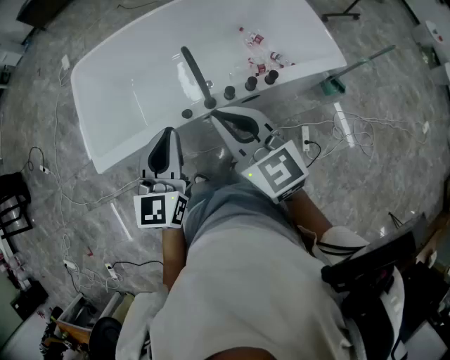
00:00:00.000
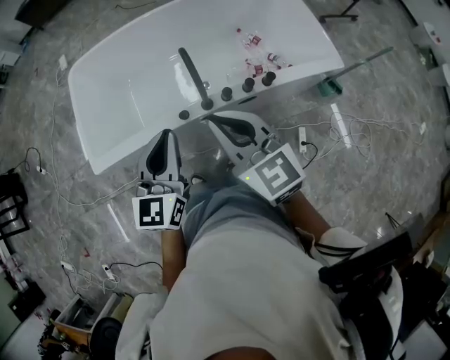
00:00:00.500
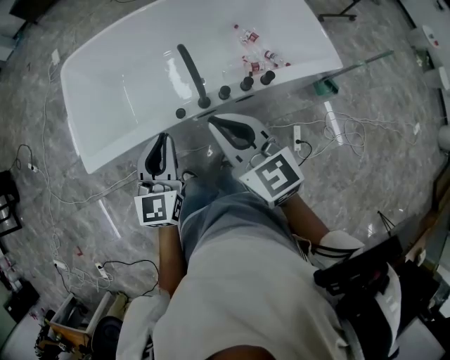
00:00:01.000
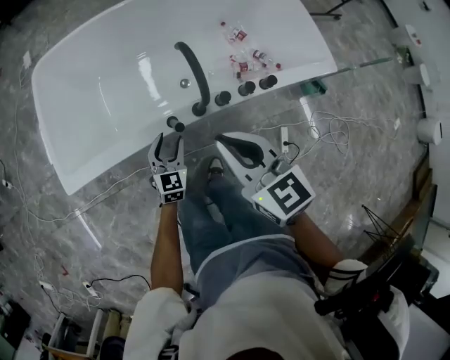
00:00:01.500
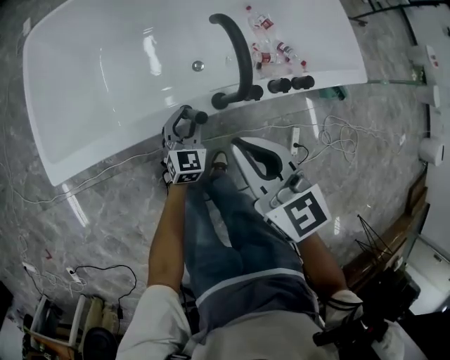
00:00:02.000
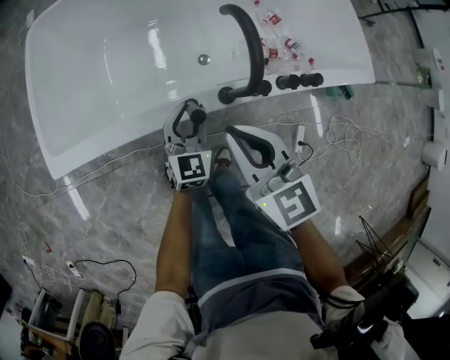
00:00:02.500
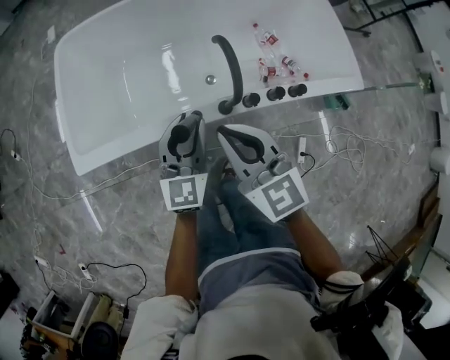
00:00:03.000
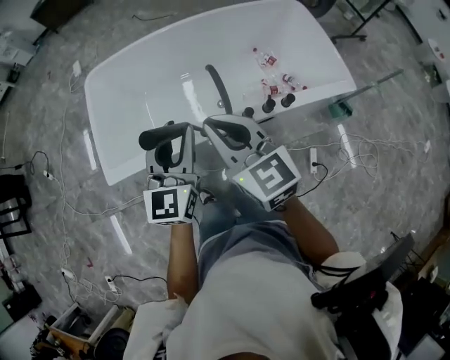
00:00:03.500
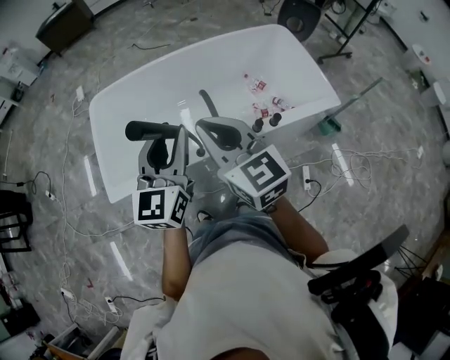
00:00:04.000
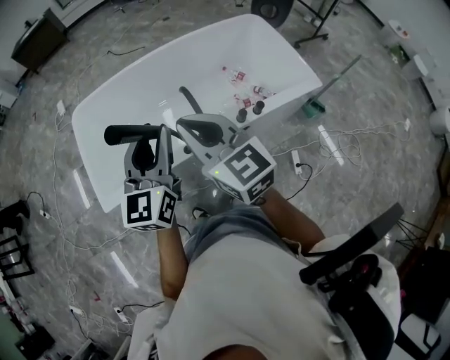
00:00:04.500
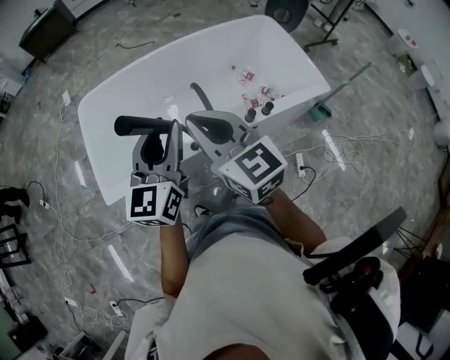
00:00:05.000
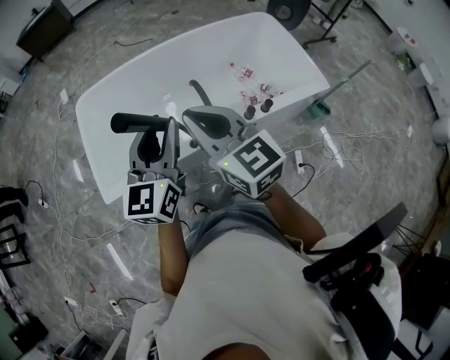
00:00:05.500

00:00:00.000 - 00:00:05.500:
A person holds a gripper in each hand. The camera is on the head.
00:00:00.000 - 00:00:02.000: The left gripper shifts about 80 cm downward and forward, swivels roughly 20 degrees, and opens up; the right gripper heads downward, forward and to the left, covering about 60 cm.
00:00:02.000 - 00:00:03.500: The right gripper is displaced upward and backward by about 50 cm. The left gripper is displaced upward by roughly 70 cm, and swivels about 20 degrees.
00:00:03.500 - 00:00:05.500: The grippers both shift upward and backward by roughly 15 cm.

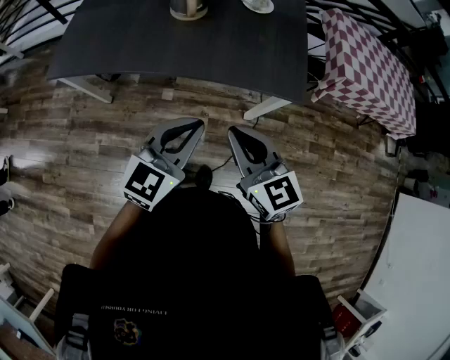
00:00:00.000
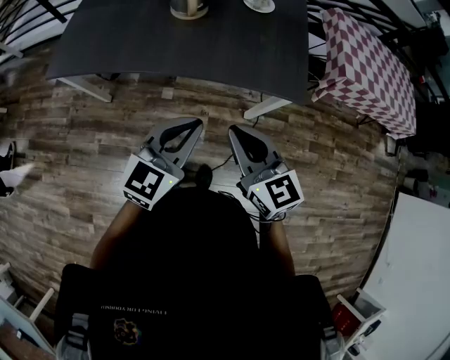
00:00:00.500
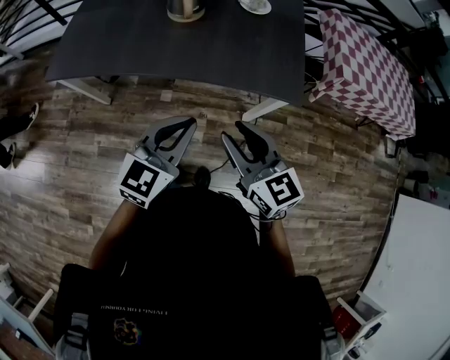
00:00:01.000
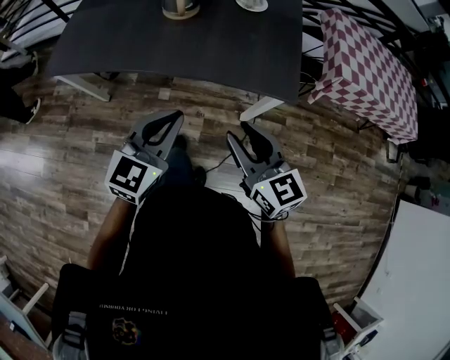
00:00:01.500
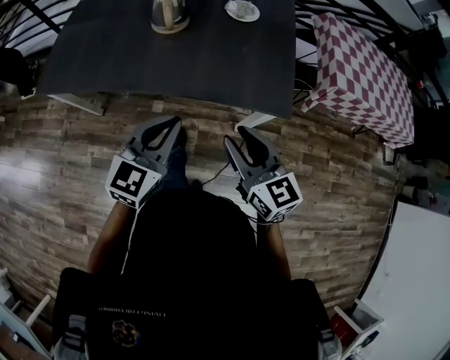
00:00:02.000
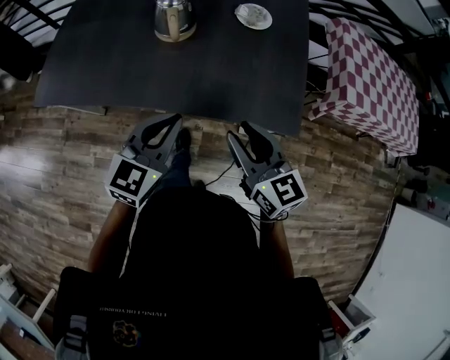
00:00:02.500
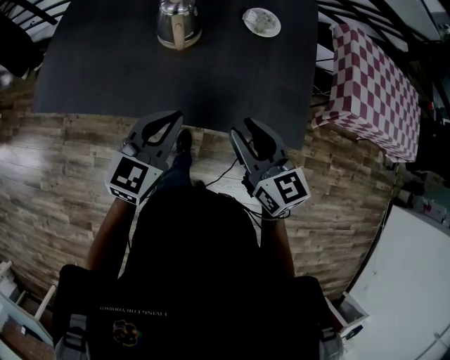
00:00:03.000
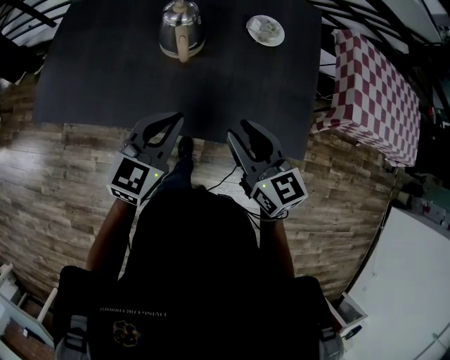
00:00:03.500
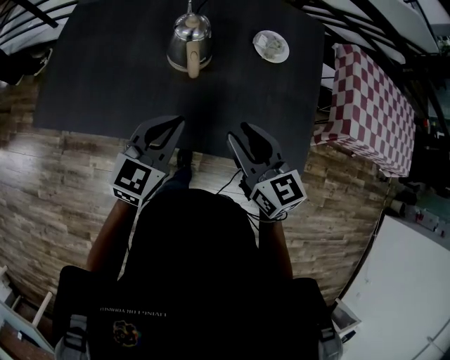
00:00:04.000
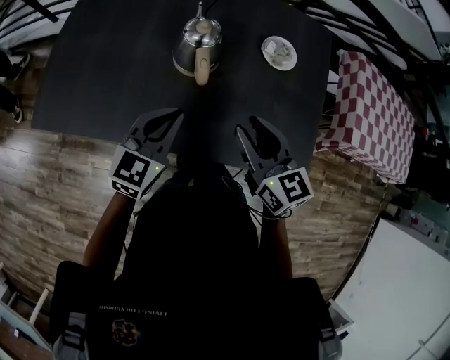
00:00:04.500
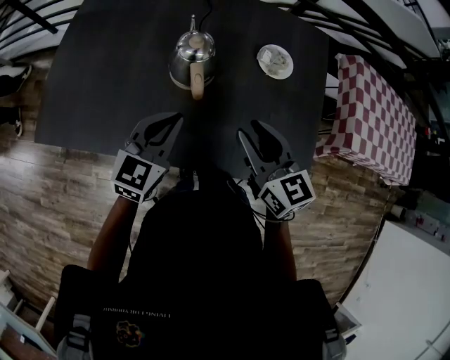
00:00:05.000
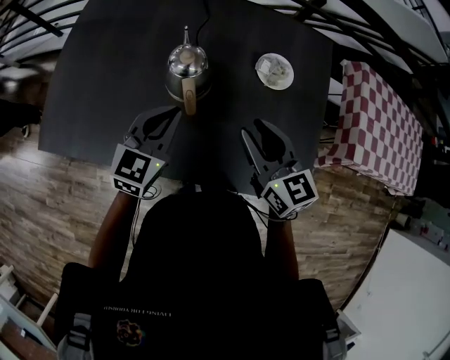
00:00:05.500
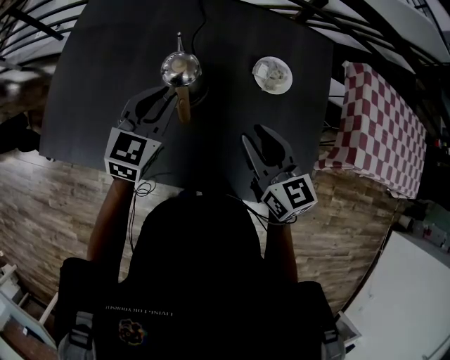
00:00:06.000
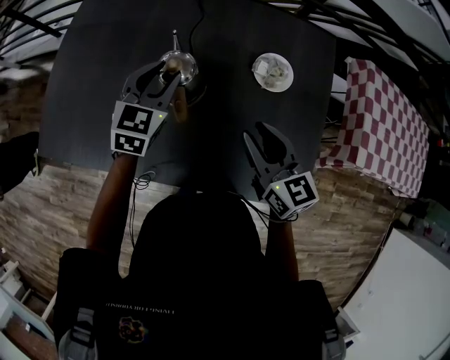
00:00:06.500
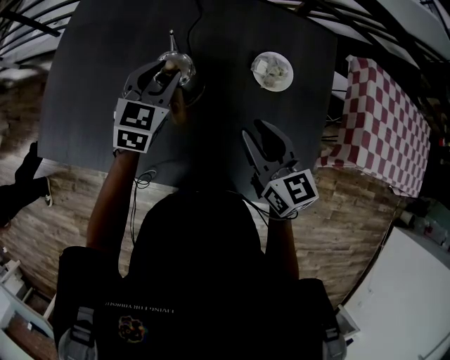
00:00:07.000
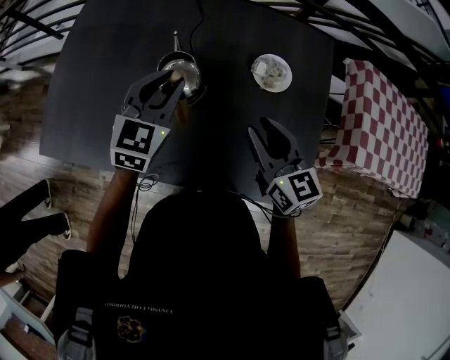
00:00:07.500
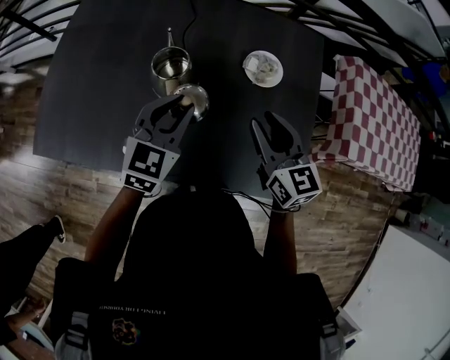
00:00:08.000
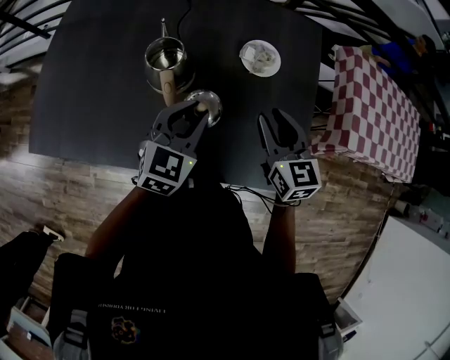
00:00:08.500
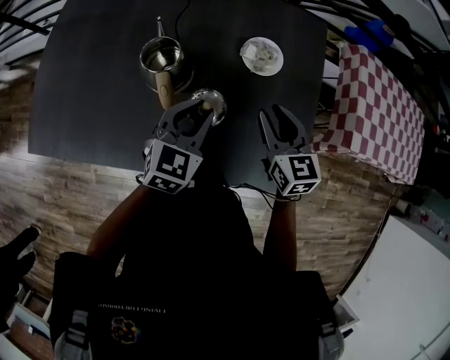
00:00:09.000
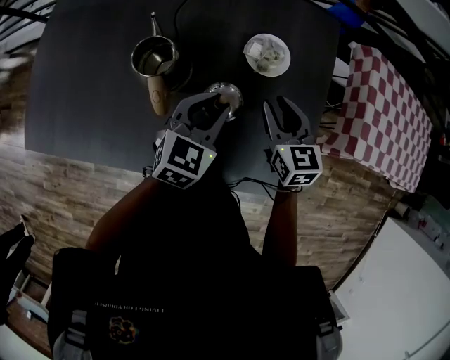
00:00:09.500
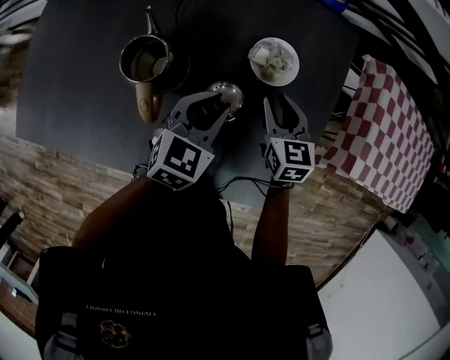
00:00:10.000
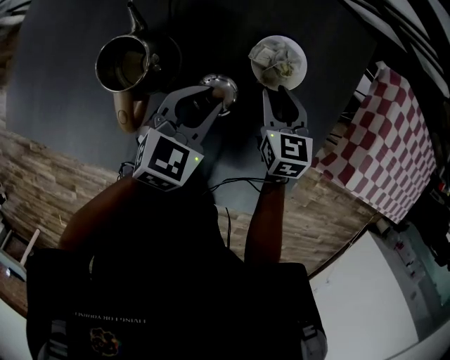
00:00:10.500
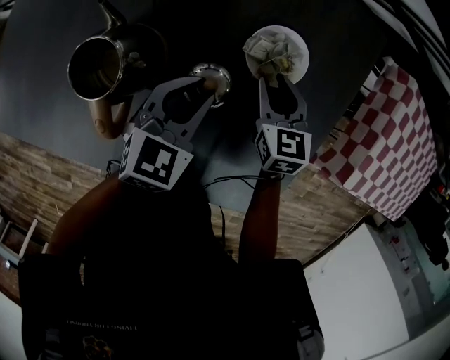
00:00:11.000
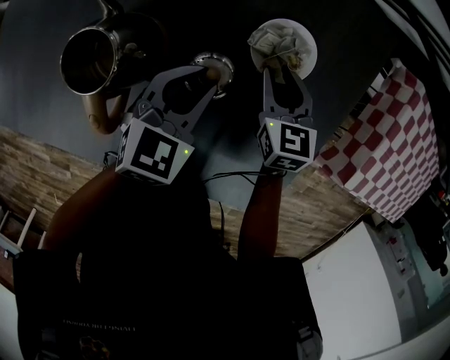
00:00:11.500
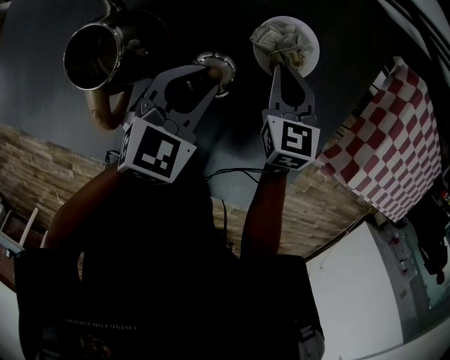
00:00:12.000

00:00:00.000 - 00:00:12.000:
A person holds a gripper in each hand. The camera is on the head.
00:00:00.000 - 00:00:02.000: The right gripper heads to the right and forward, covering roughly 10 cm, and opens up. The left gripper heads forward, covering roughly 5 cm.
00:00:02.000 - 00:00:04.000: The two grippers go some 25 cm forward and to the left.
00:00:04.000 - 00:00:06.000: Both grippers travel together forward, about 15 cm.
00:00:06.000 - 00:00:08.000: The left gripper goes approximately 5 cm to the right.
00:00:08.000 - 00:00:10.000: The left gripper shifts about 15 cm downward, to the right and forward. The right gripper is displaced downward and forward by roughly 20 cm.
00:00:10.000 - 00:00:12.000: The left gripper heads downward, covering approximately 5 cm; the right gripper is displaced forward and downward by approximately 10 cm, and closes its fingers.

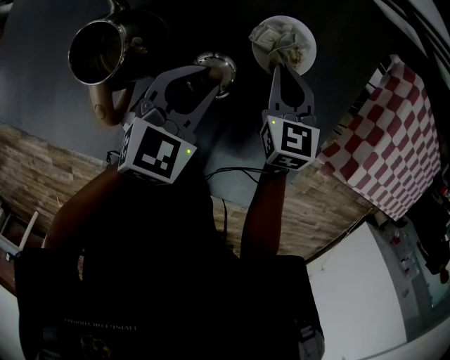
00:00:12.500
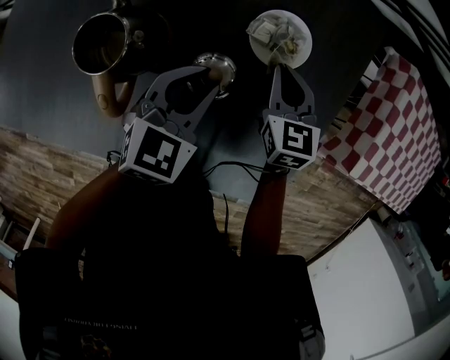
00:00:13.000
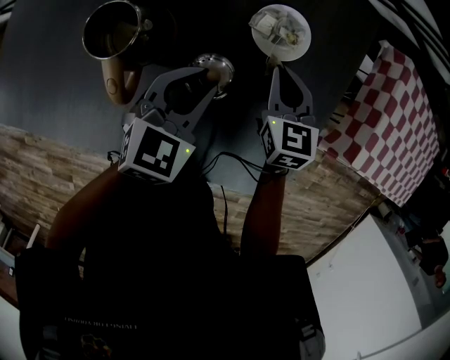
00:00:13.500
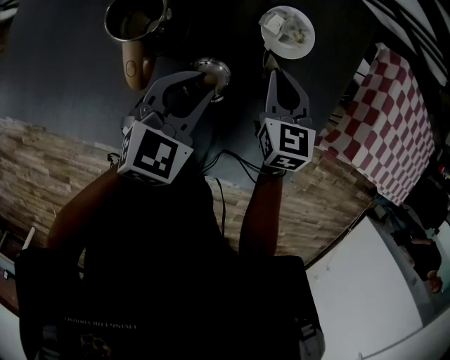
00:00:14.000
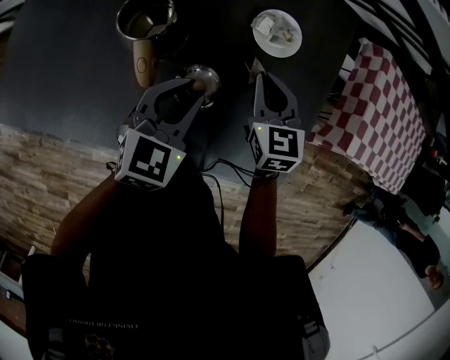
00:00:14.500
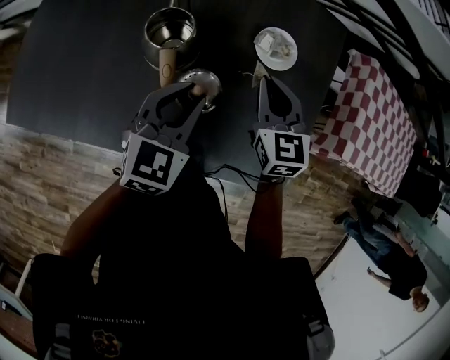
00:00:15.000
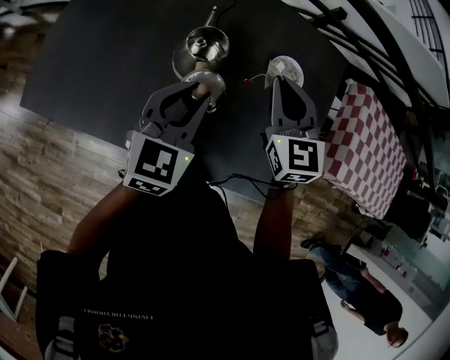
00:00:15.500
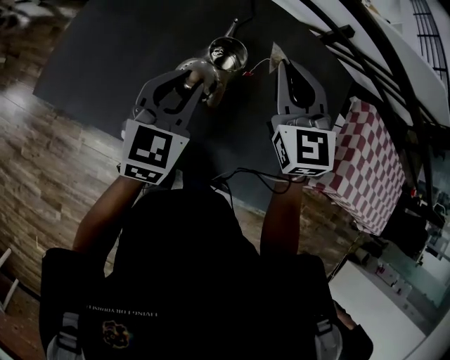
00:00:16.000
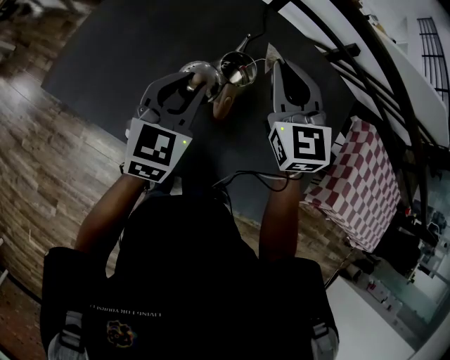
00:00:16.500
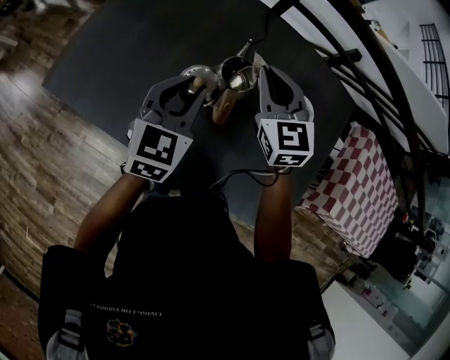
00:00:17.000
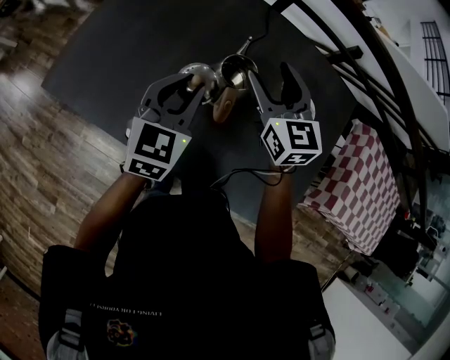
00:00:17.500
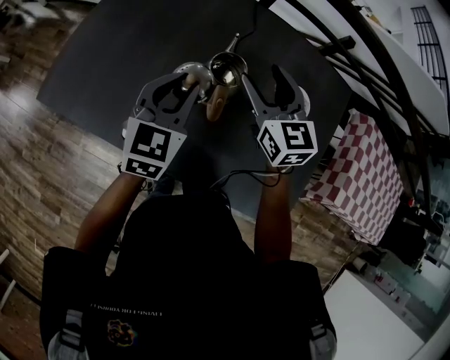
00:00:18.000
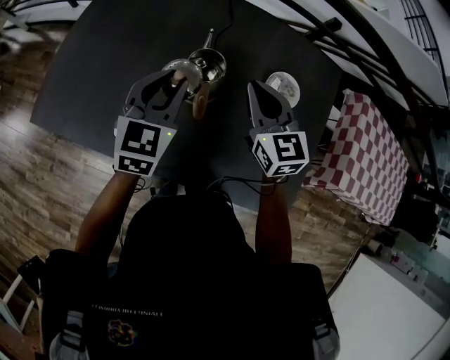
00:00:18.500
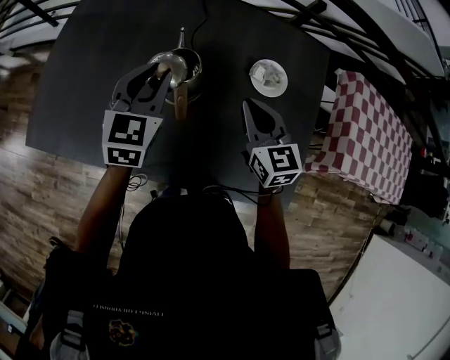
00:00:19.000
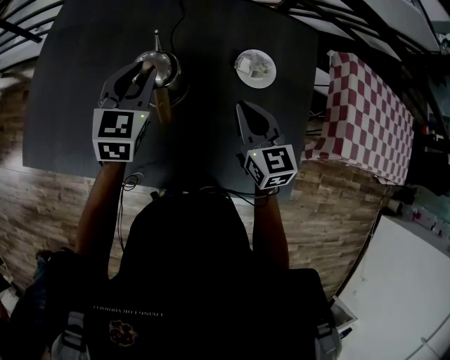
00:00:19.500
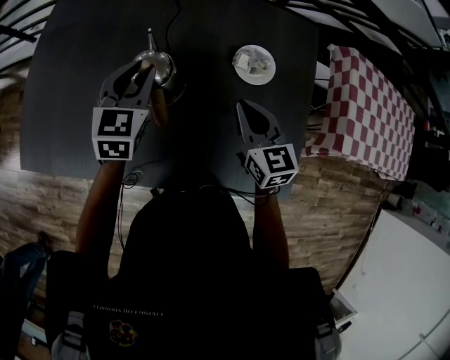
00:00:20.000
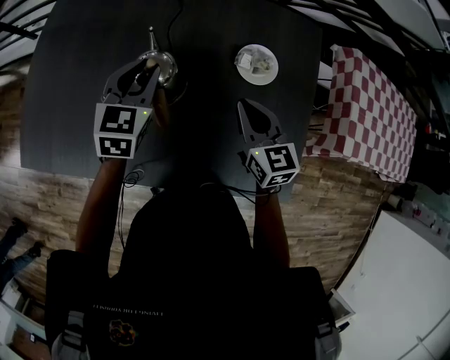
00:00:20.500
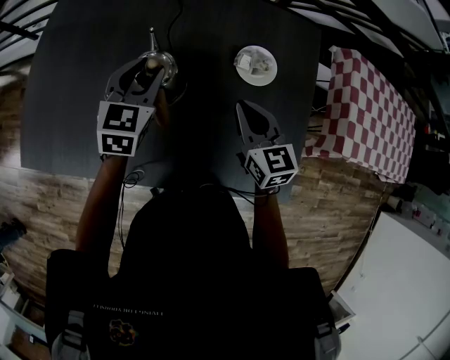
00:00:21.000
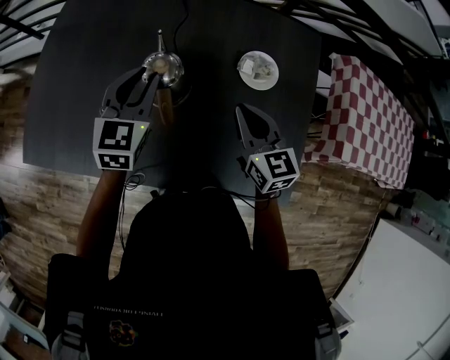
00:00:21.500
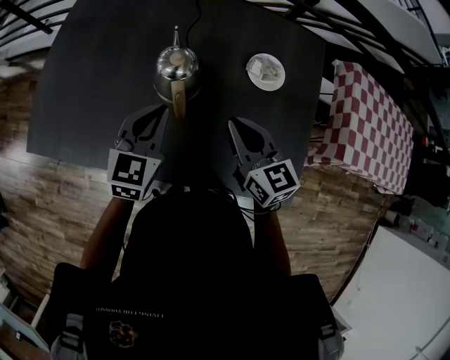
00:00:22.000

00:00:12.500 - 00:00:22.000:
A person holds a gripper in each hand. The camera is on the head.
00:00:12.500 - 00:00:14.500: The two grippers go roughly 15 cm backward and upward.
00:00:14.500 - 00:00:16.500: The left gripper travels to the left and upward by roughly 25 cm, and swivels approximately 30 degrees. Meanwhile the right gripper travels upward and to the left by roughly 30 cm, and swivels about 30 degrees.
00:00:16.500 - 00:00:18.000: The right gripper shifts roughly 5 cm downward, and opens up.
00:00:18.000 - 00:00:20.000: The left gripper shifts roughly 15 cm forward, to the right and downward, while the right gripper moves to the right, downward and backward, roughly 20 cm, turns by some 20 degrees, and closes.
00:00:20.000 - 00:00:22.000: The right gripper is displaced to the left and backward by approximately 10 cm. Meanwhile the left gripper is displaced backward by about 10 cm, and closes up.
